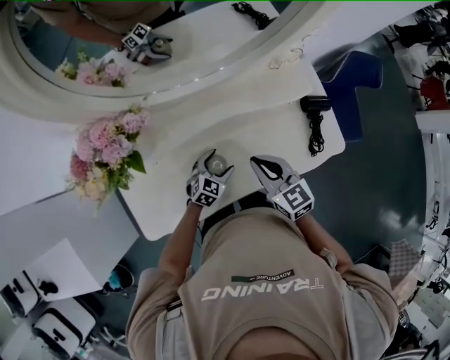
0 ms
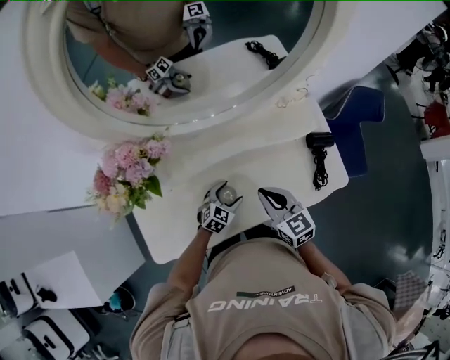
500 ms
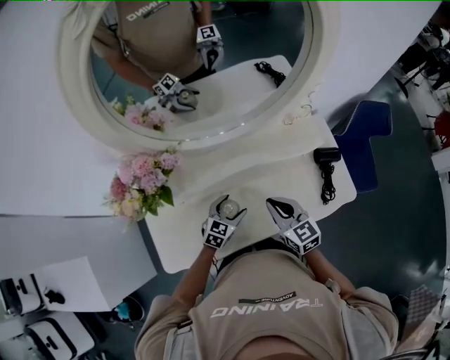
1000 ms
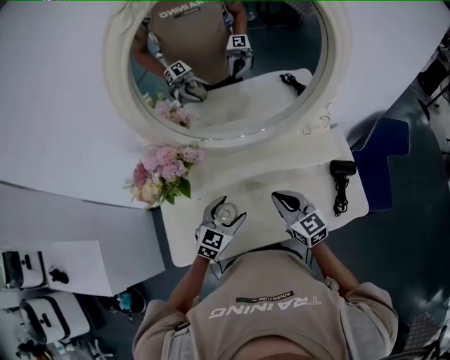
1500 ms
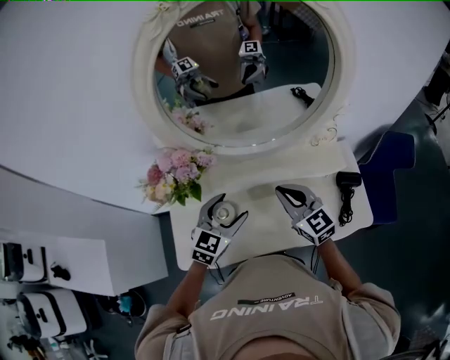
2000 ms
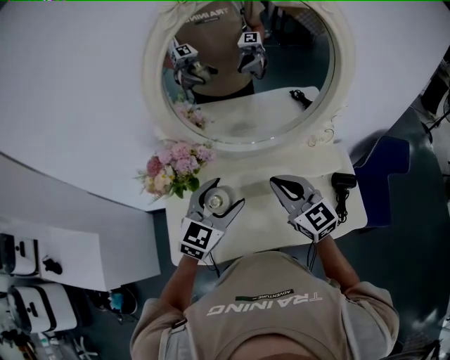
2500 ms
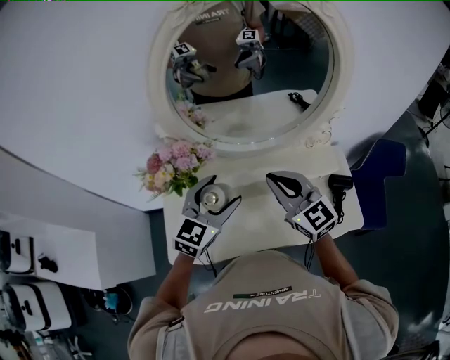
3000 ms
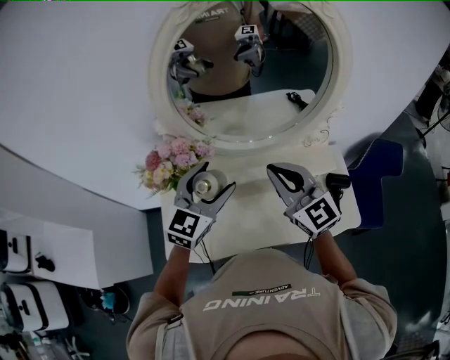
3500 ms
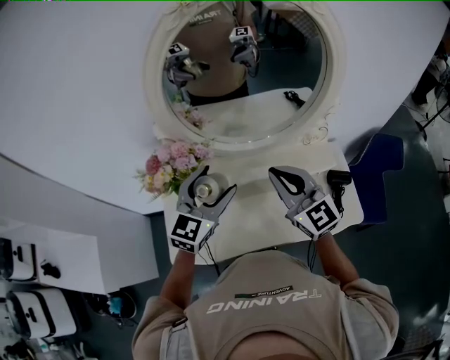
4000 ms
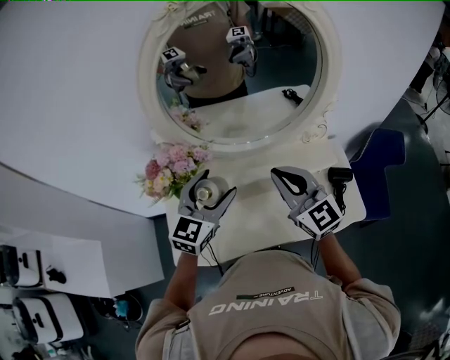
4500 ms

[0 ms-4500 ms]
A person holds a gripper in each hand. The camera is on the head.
0 ms to 2000 ms: The right gripper moves upward and forward, some 10 cm, and turns by roughly 20 degrees. Meanwhile the left gripper is displaced upward by some 25 cm, and swivels some 20 degrees.
2000 ms to 4500 ms: Both grippers move upward, approximately 10 cm.

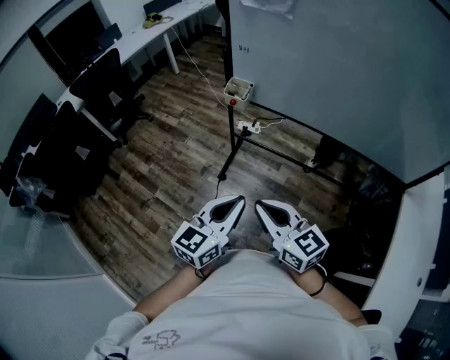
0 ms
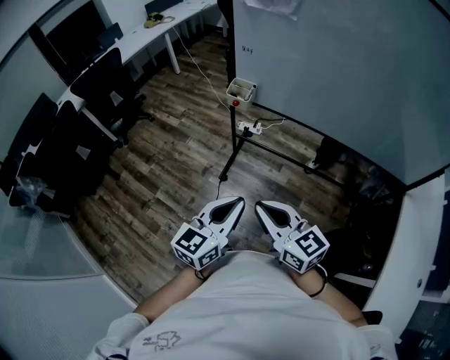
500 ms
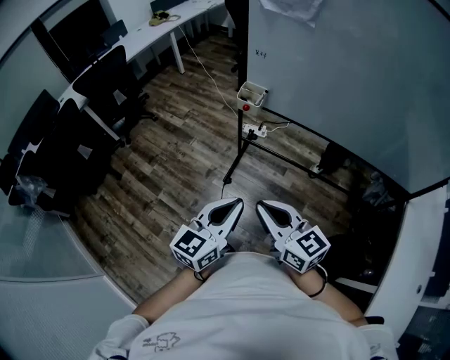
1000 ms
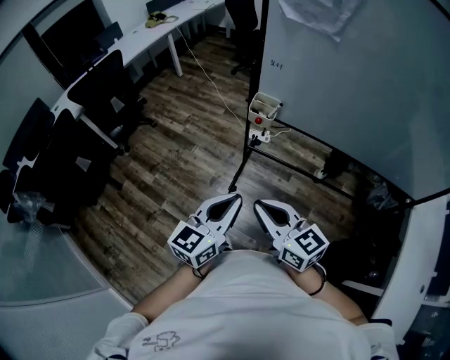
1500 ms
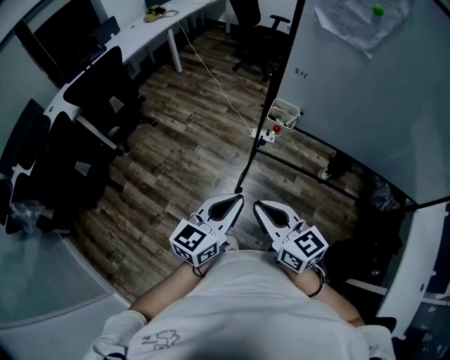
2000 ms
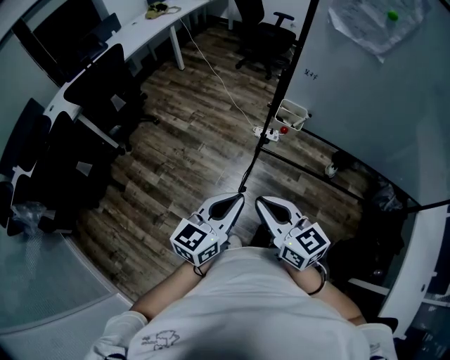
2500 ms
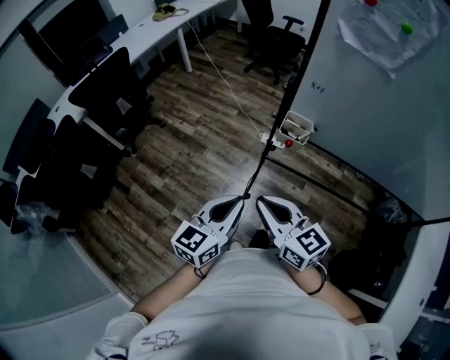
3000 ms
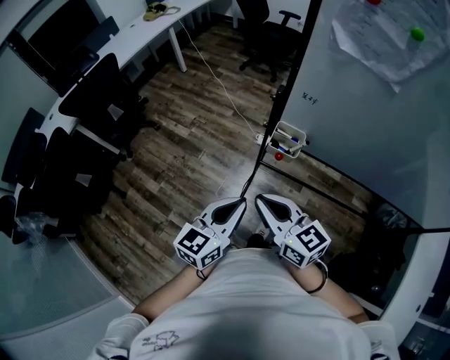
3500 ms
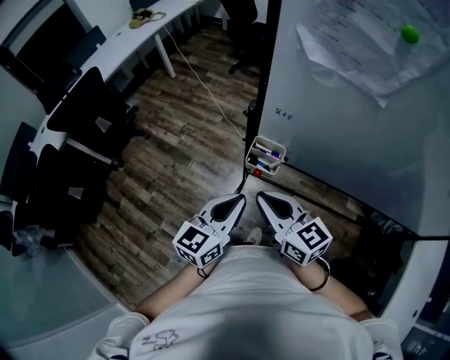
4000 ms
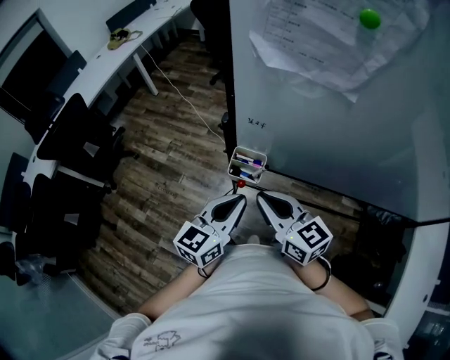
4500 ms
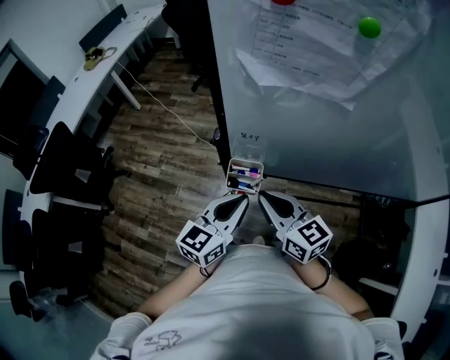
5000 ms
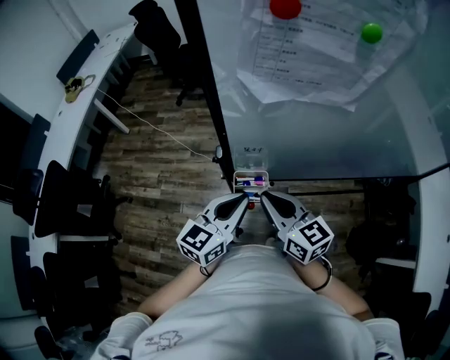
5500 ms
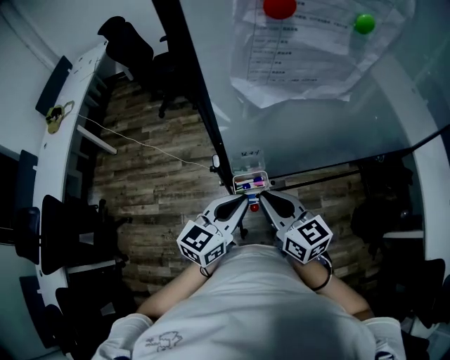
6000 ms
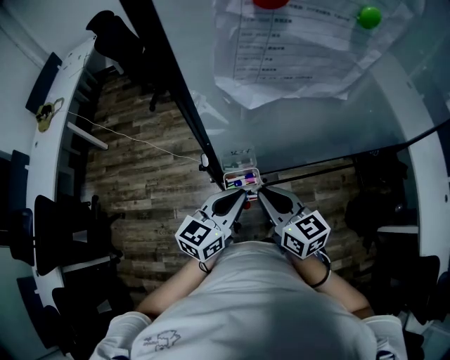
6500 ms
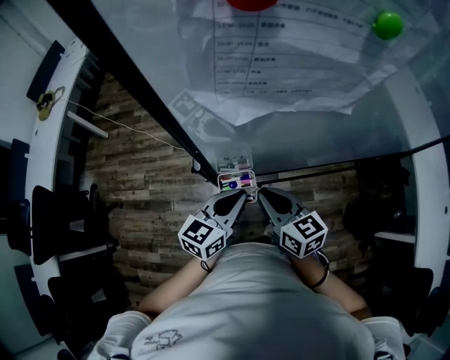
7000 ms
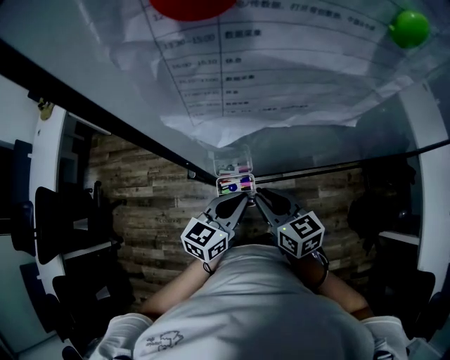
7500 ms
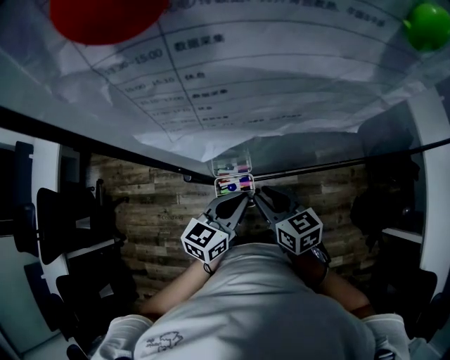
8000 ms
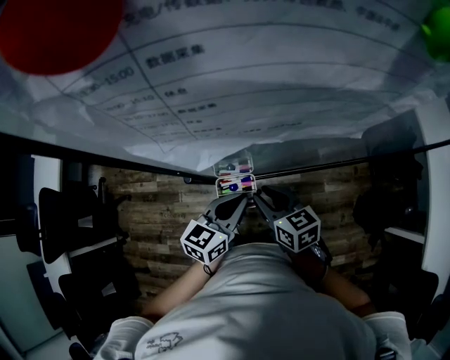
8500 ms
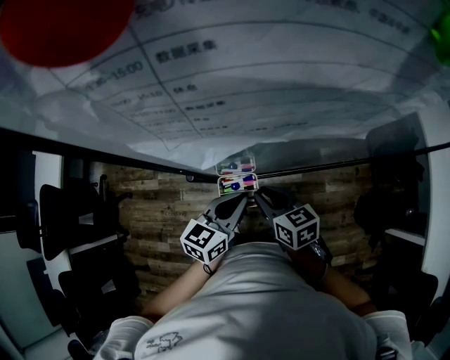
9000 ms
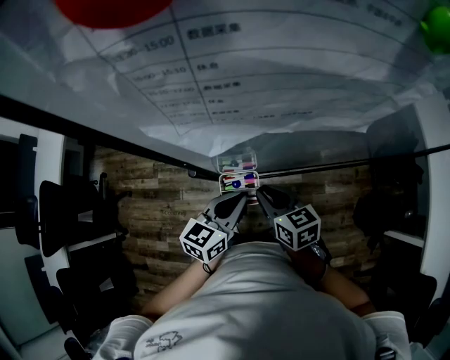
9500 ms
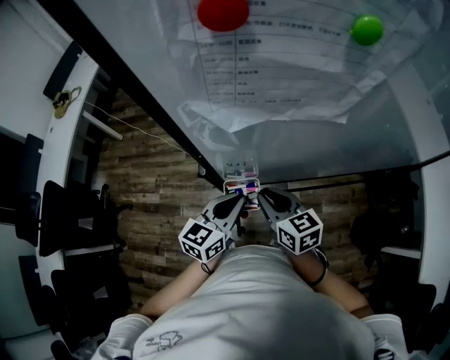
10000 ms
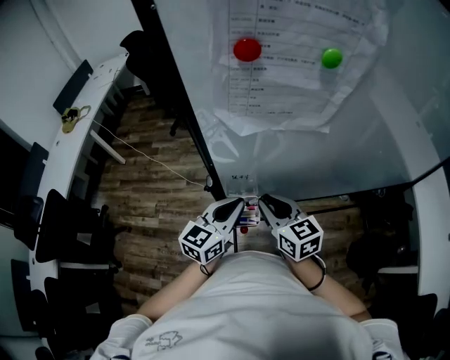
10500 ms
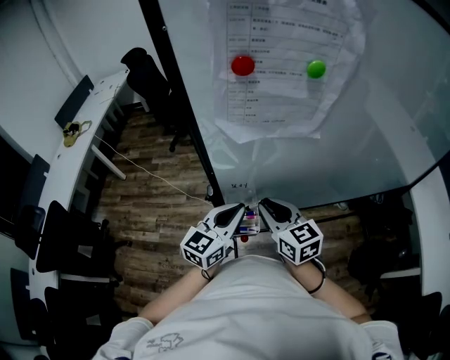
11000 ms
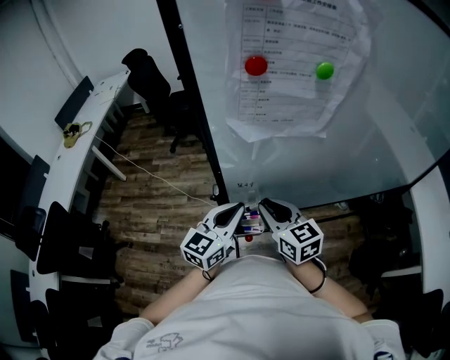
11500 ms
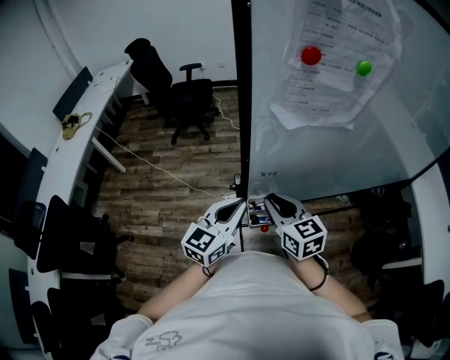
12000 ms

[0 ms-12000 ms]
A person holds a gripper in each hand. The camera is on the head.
0 ms to 2000 ms: The grippers both shift to the left and forward by about 25 cm.
2000 ms to 4000 ms: Both grippers move forward and to the right, roughly 25 cm.
4000 ms to 6000 ms: The left gripper moves approximately 15 cm, and changes its angle by approximately 40 degrees. Meanwhile the right gripper shifts by approximately 10 cm, and changes its angle by approximately 40 degrees.
6000 ms to 8000 ms: The left gripper goes some 10 cm downward, to the right and forward, while the right gripper goes about 10 cm downward and forward.
8000 ms to 10000 ms: The grippers move only a little.
10000 ms to 12000 ms: Both grippers move upward and to the left, about 10 cm.

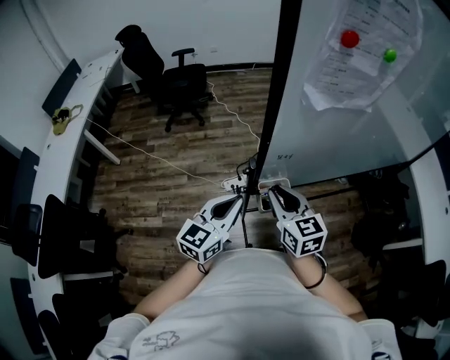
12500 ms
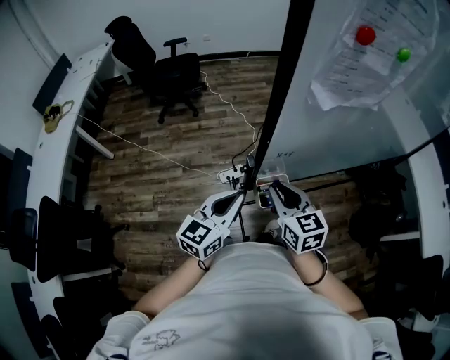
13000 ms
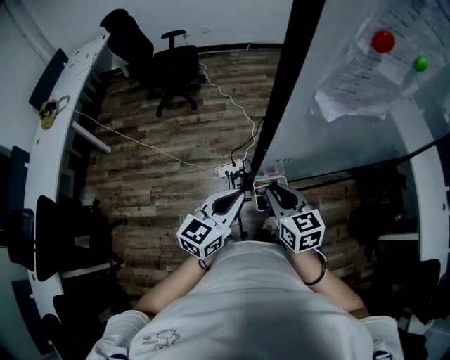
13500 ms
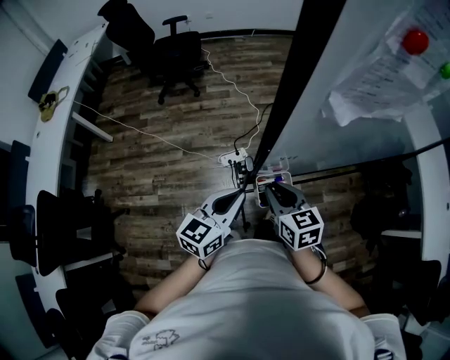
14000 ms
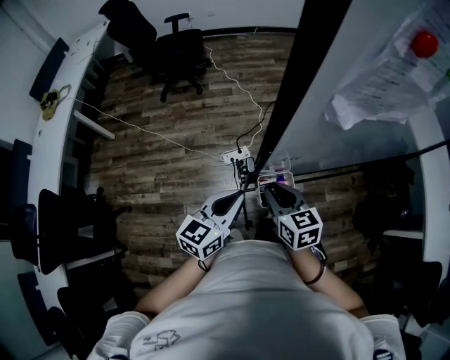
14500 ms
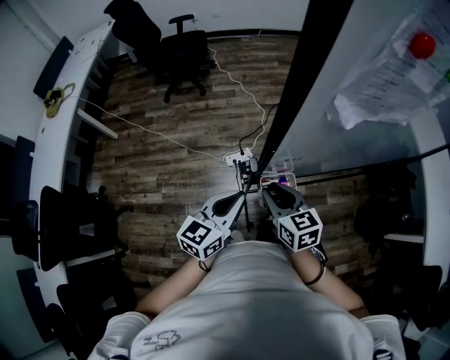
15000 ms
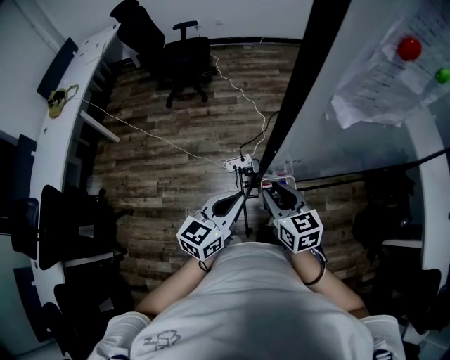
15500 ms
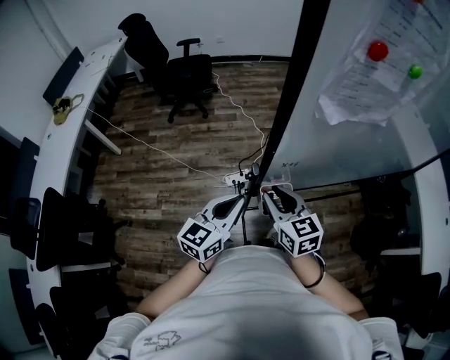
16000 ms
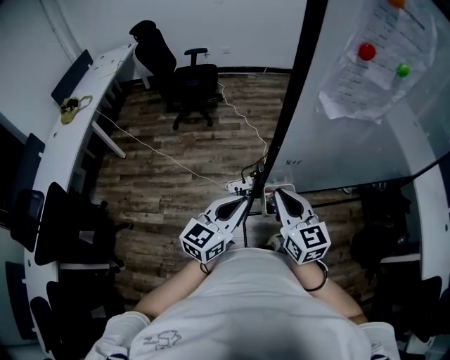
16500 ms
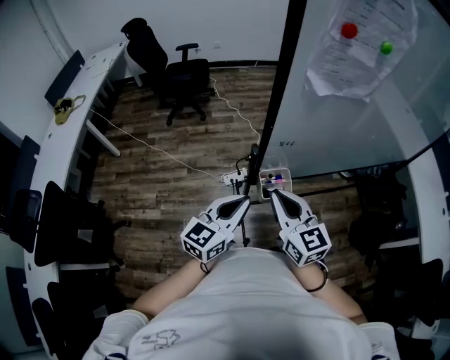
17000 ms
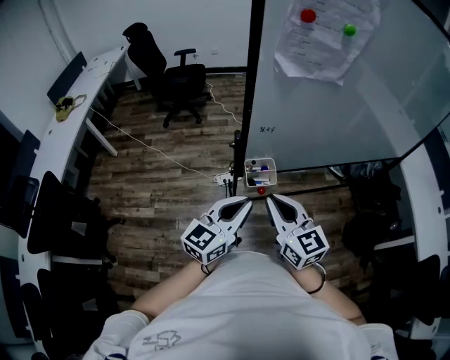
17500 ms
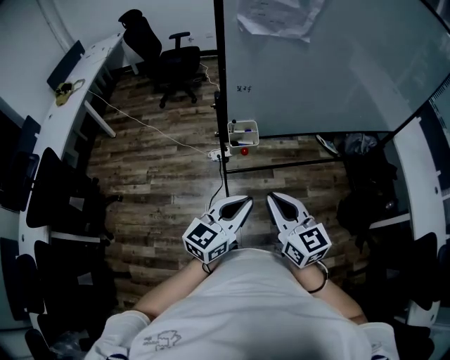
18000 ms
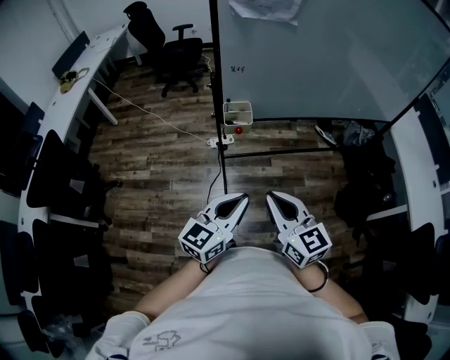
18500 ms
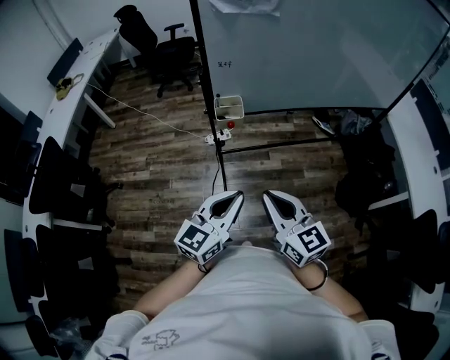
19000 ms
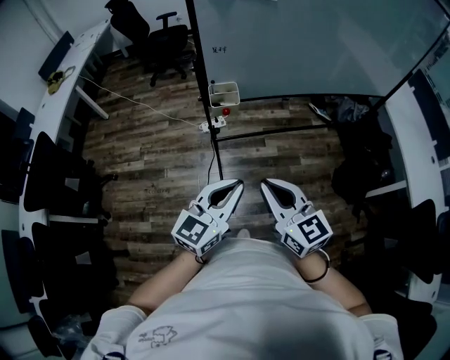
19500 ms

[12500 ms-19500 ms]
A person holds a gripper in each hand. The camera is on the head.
12500 ms to 14500 ms: The right gripper is displaced downward by roughly 10 cm. The left gripper moves downward, some 5 cm.
14500 ms to 16000 ms: The right gripper travels upward by roughly 5 cm.
16000 ms to 17500 ms: The left gripper travels backward and to the right by roughly 15 cm; the right gripper goes some 15 cm backward, and closes its fingers.
17500 ms to 19500 ms: Both grippers travel together backward and to the right, approximately 25 cm.

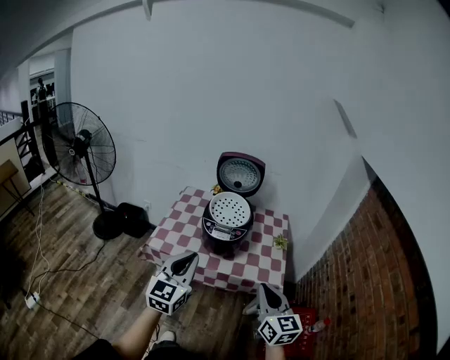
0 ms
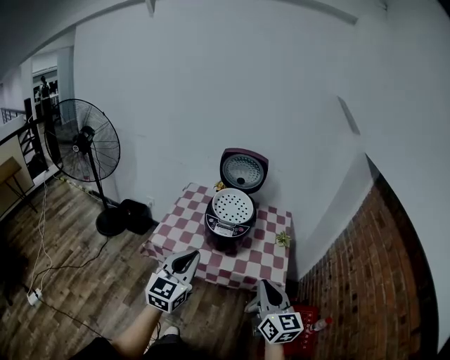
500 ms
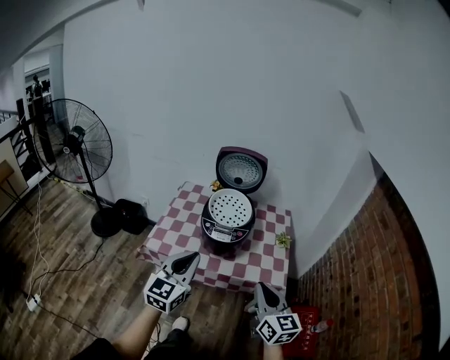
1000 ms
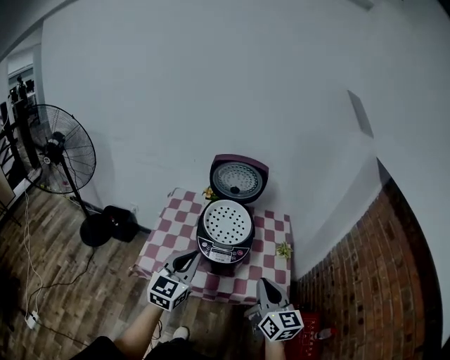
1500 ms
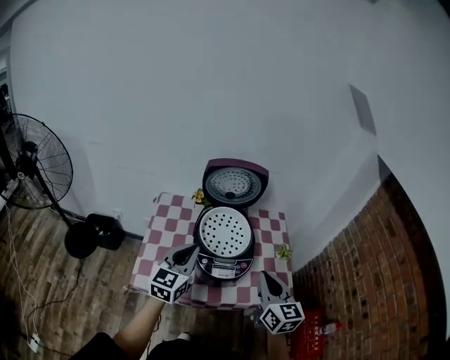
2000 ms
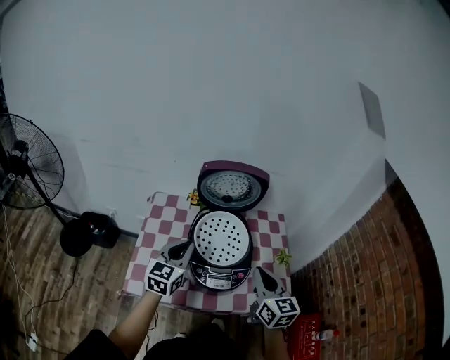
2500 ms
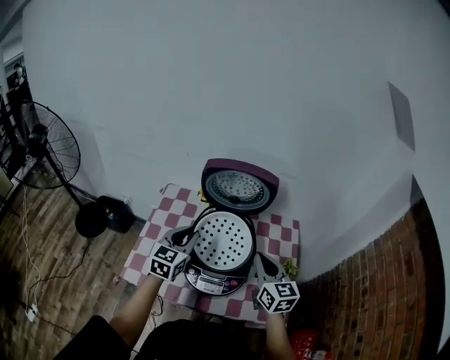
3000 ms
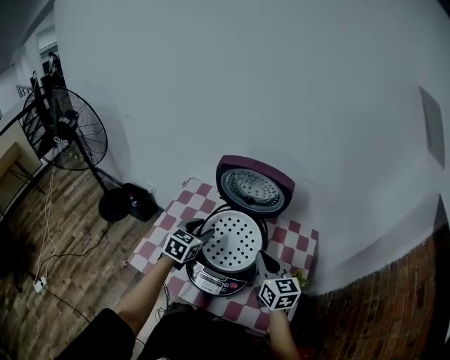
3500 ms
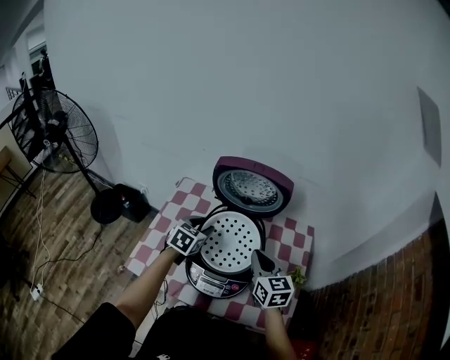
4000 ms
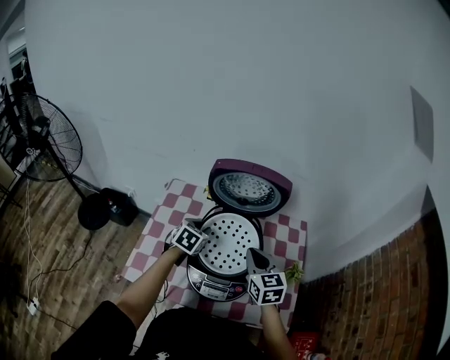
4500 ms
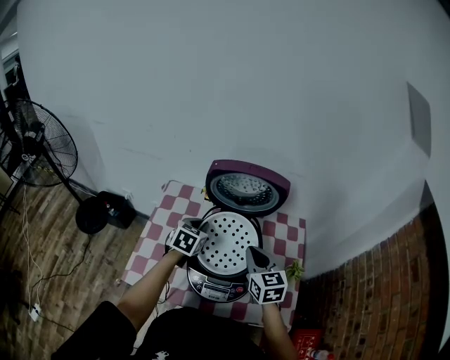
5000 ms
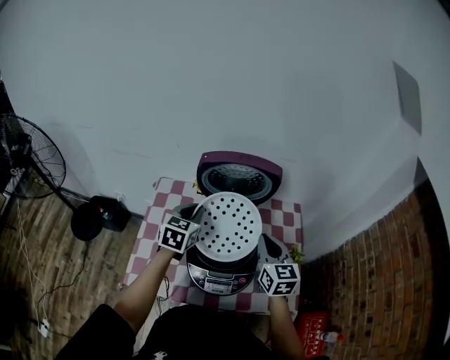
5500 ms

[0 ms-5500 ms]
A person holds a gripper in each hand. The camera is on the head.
0 ms to 2000 ms: The two grippers go some 25 cm forward.
2000 ms to 3500 ms: The right gripper goes some 20 cm forward, and rotates about 20 degrees. Meanwhile the left gripper shifts some 20 cm forward and downward, turns by about 30 degrees, and opens.
3500 ms to 5500 ms: The right gripper rotates roughly 20 degrees; the left gripper ends up approximately 5 cm from where it was, and closes up.
